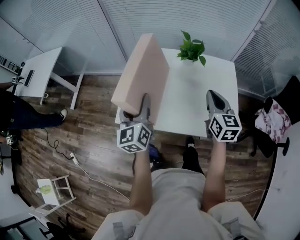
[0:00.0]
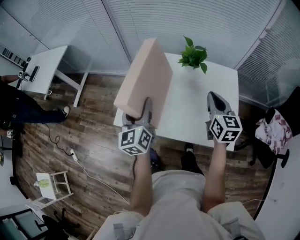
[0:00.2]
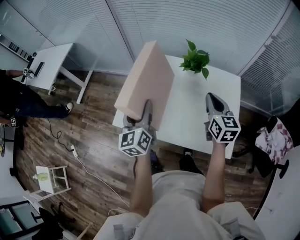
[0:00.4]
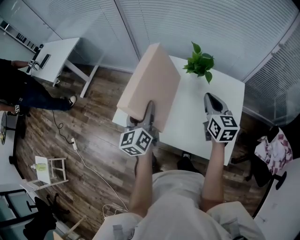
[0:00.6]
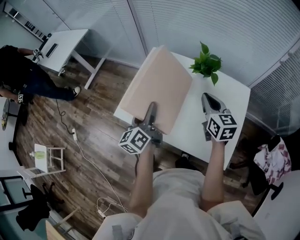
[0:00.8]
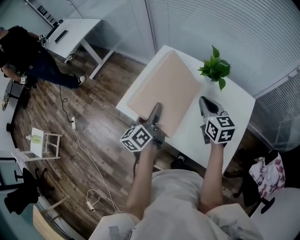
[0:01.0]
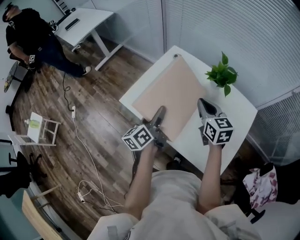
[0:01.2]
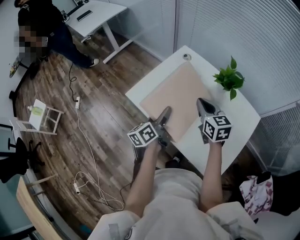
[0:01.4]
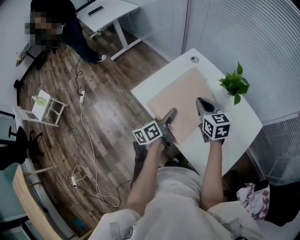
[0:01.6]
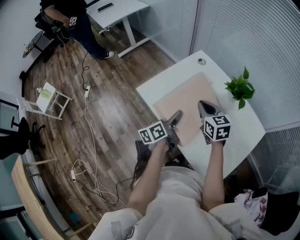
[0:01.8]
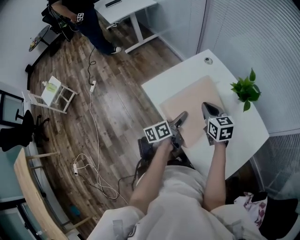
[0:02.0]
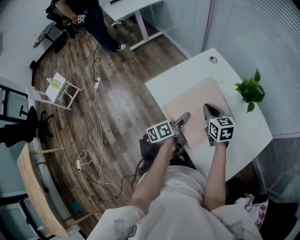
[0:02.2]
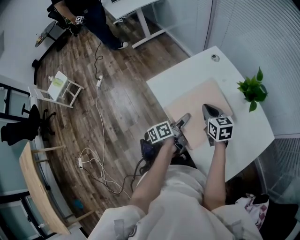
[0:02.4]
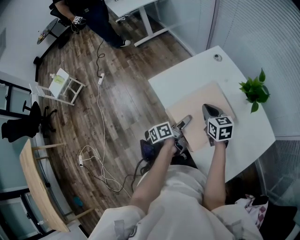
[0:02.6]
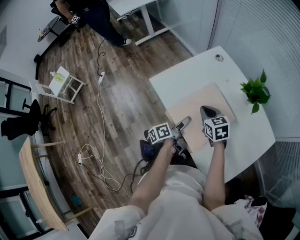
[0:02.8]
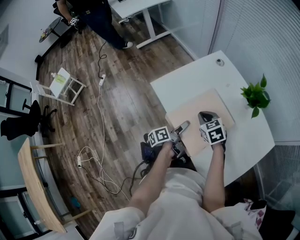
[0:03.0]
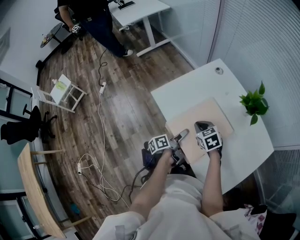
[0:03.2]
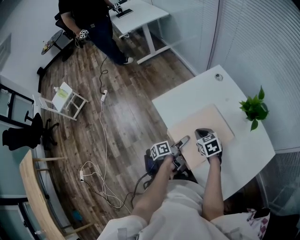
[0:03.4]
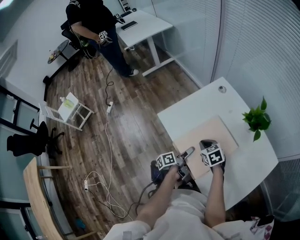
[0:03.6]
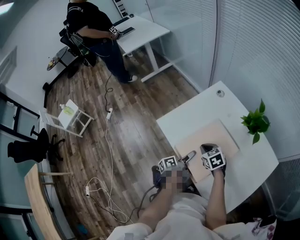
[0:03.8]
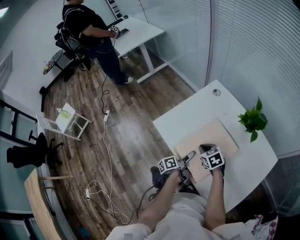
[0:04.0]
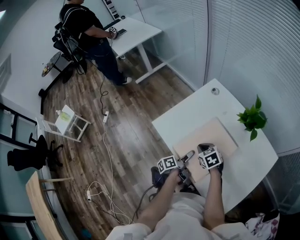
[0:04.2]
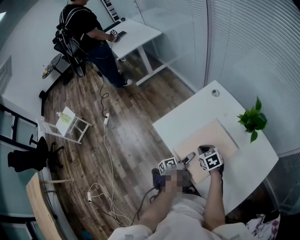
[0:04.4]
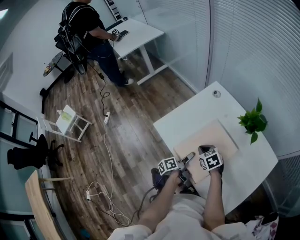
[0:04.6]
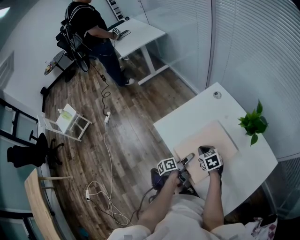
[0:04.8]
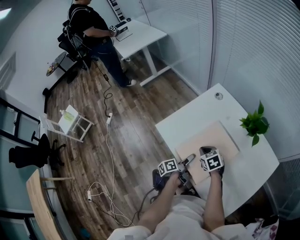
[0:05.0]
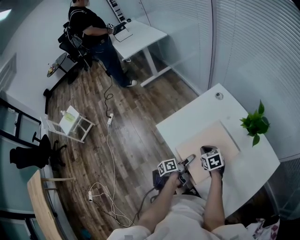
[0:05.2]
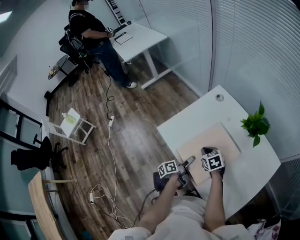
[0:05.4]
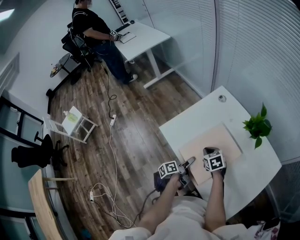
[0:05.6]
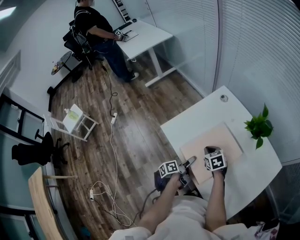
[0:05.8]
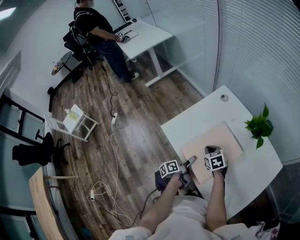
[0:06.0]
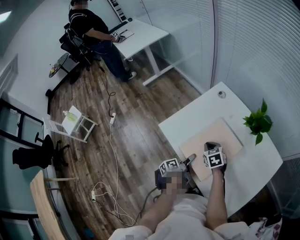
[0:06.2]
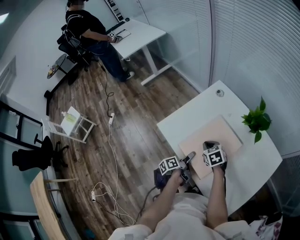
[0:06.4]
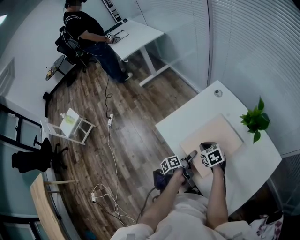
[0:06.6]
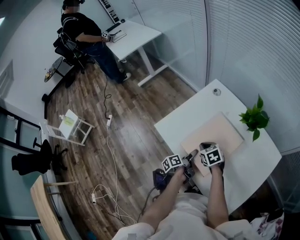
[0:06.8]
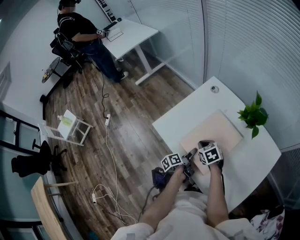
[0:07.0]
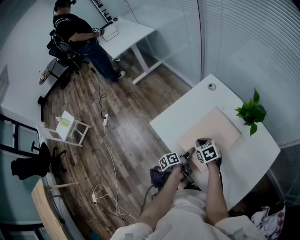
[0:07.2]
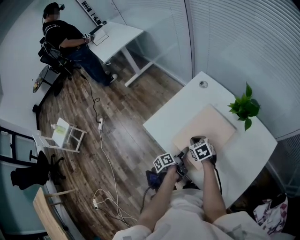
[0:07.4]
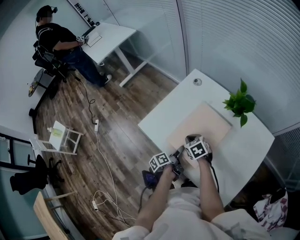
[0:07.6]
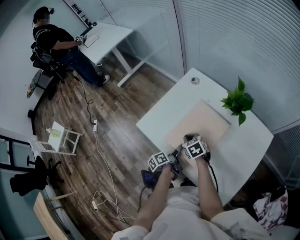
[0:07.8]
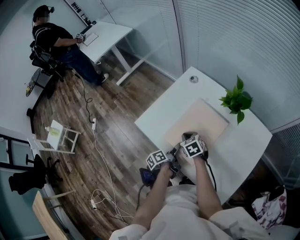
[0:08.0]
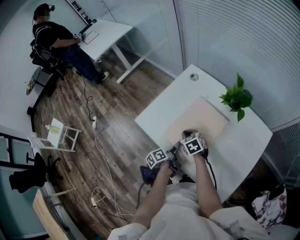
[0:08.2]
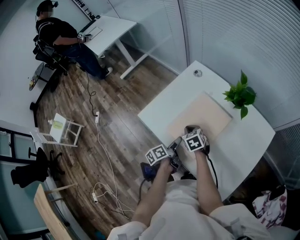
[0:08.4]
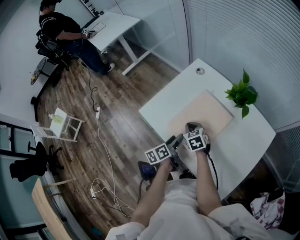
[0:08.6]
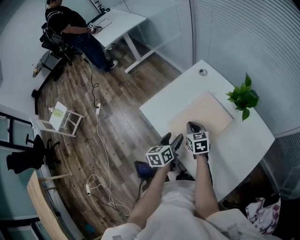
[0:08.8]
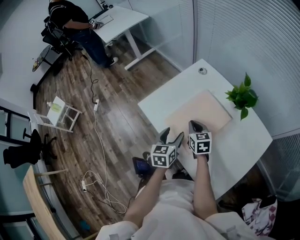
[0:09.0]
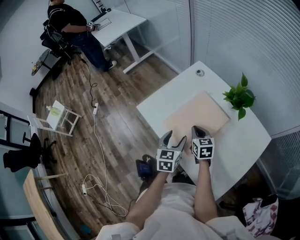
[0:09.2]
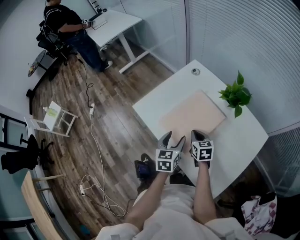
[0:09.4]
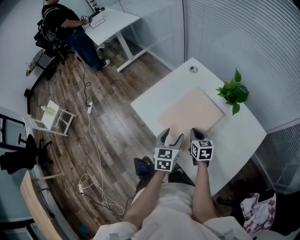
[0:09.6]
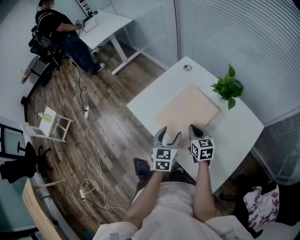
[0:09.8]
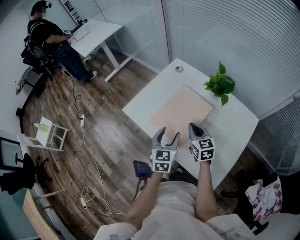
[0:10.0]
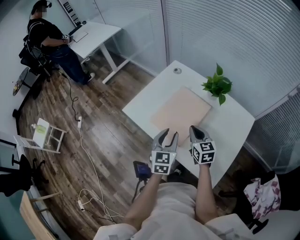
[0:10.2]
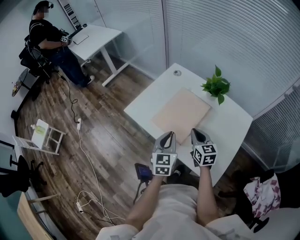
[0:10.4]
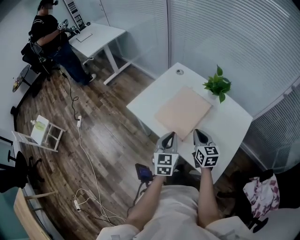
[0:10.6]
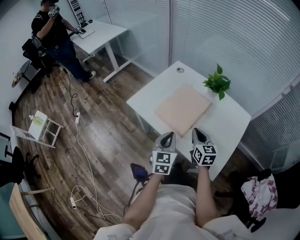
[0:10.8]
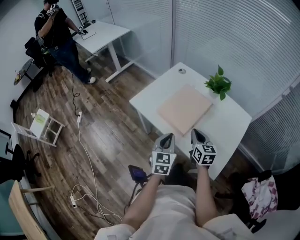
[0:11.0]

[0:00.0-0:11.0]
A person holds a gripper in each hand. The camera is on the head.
0:00.0 to 0:01.6: The right gripper shifts by about 15 cm, and rotates roughly 50 degrees. The left gripper travels downward by about 15 cm, and rotates around the line of its fingers by some 40 degrees, counterclockwise from behind.
0:01.6 to 0:03.2: The left gripper heads downward, covering approximately 10 cm, and rotates some 30 degrees, while the right gripper heads downward and to the left, covering roughly 15 cm, and changes its angle by approximately 30 degrees.
0:03.2 to 0:04.8: The grippers make only small movements.
0:04.8 to 0:07.8: The grippers move only a little.
0:07.8 to 0:09.4: The right gripper is displaced to the right and backward by some 10 cm, and turns by approximately 20 degrees. The left gripper goes some 10 cm upward, and twists about 70 degrees clockwise, seen from behind.
0:09.4 to 0:11.0: Both grippers move backward and upward, about 15 cm. The right gripper turns by roughly 20 degrees; the left gripper closes its fingers.

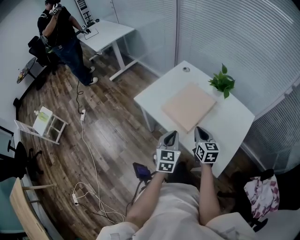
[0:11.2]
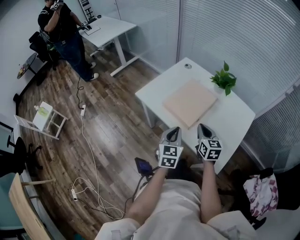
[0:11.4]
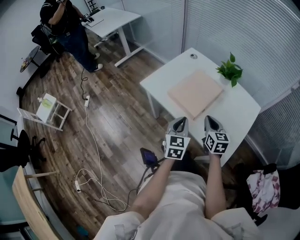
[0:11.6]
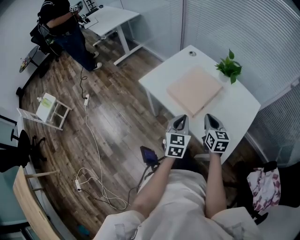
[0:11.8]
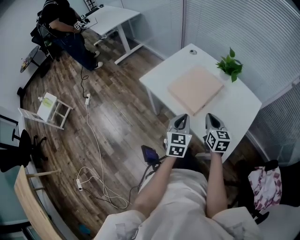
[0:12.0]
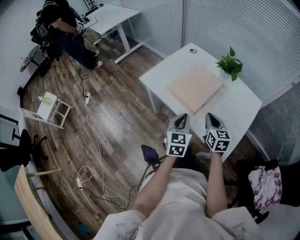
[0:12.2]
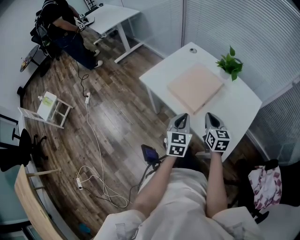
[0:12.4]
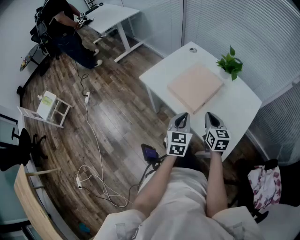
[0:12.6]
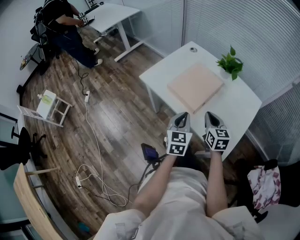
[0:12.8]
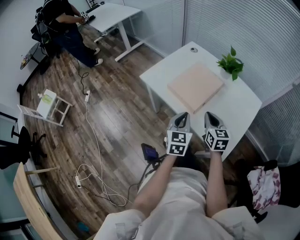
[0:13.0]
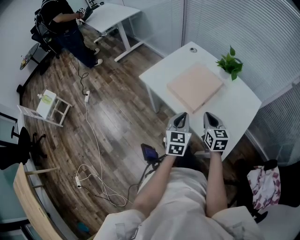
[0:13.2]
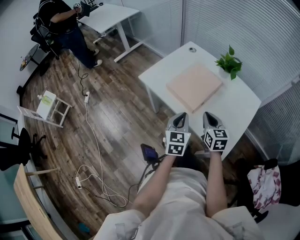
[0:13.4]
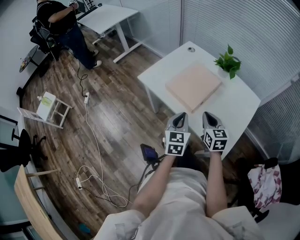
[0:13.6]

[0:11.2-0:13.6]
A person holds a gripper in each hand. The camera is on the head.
0:11.2 to 0:12.4: There are only small adjustments of the grippers.
0:12.4 to 0:13.6: Both grippers stay put.

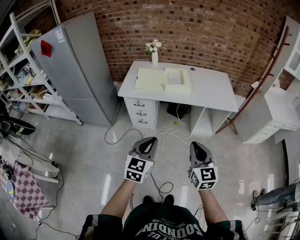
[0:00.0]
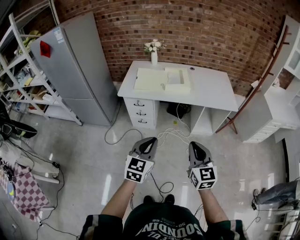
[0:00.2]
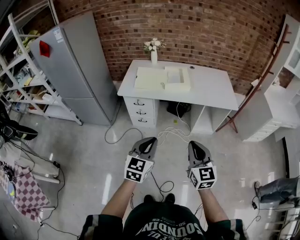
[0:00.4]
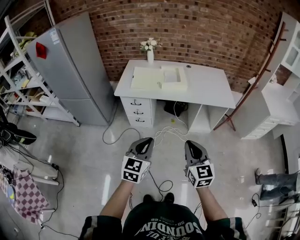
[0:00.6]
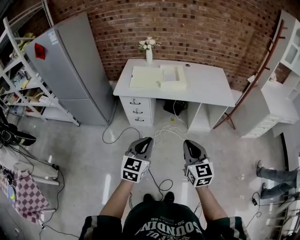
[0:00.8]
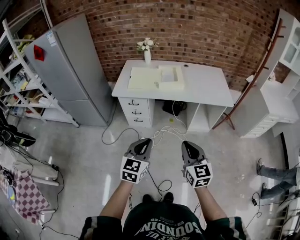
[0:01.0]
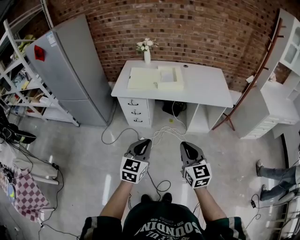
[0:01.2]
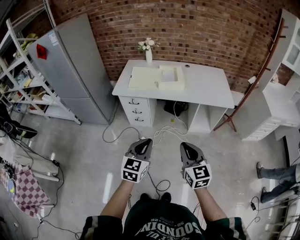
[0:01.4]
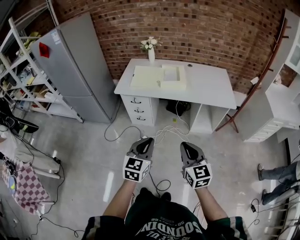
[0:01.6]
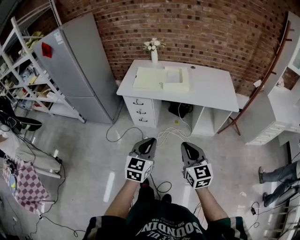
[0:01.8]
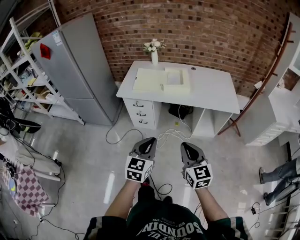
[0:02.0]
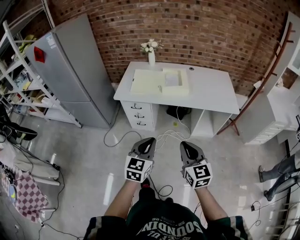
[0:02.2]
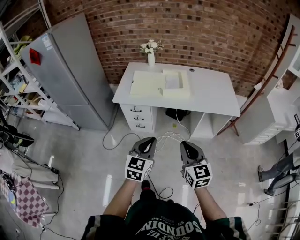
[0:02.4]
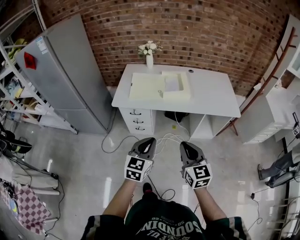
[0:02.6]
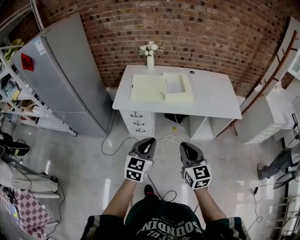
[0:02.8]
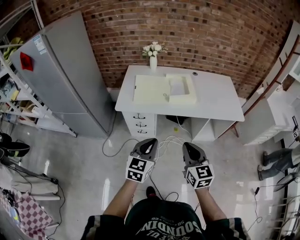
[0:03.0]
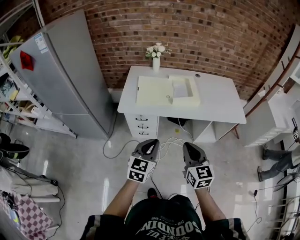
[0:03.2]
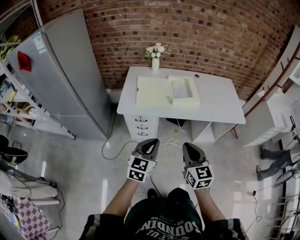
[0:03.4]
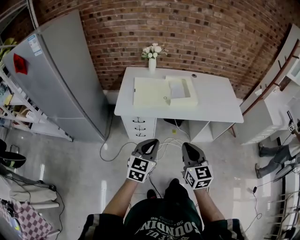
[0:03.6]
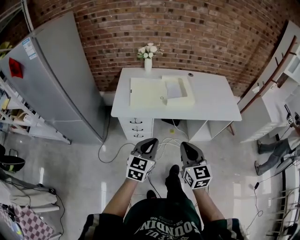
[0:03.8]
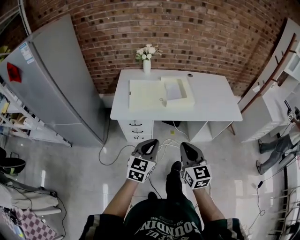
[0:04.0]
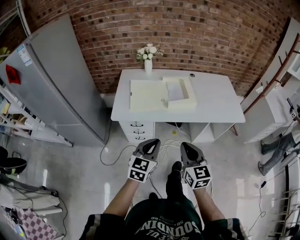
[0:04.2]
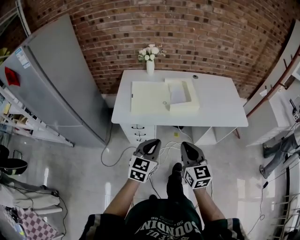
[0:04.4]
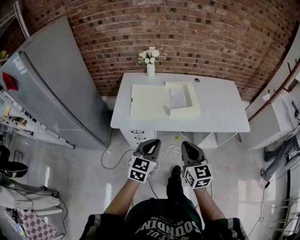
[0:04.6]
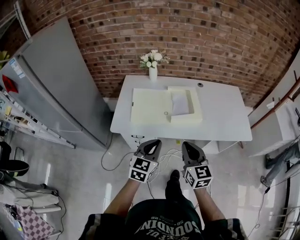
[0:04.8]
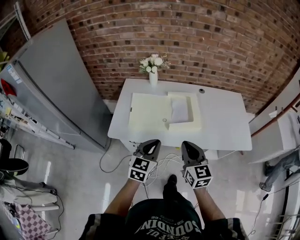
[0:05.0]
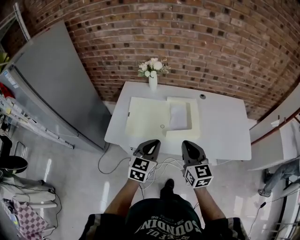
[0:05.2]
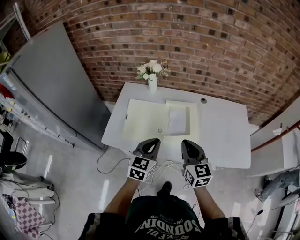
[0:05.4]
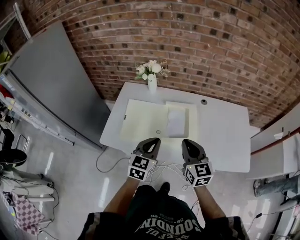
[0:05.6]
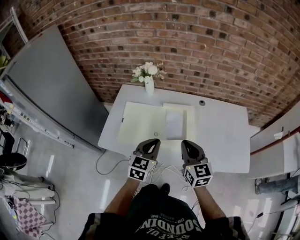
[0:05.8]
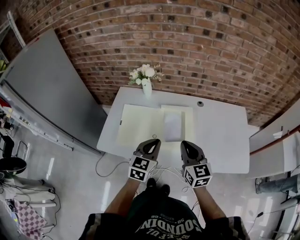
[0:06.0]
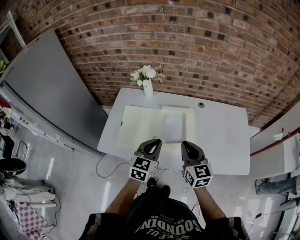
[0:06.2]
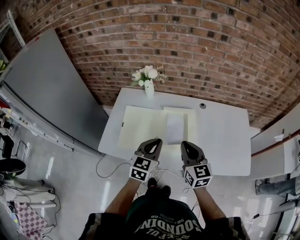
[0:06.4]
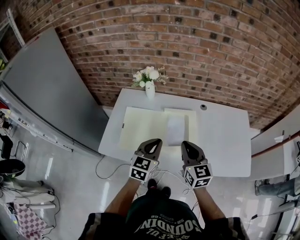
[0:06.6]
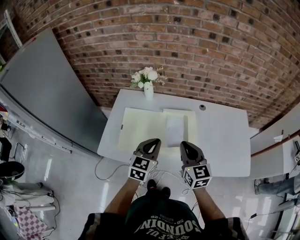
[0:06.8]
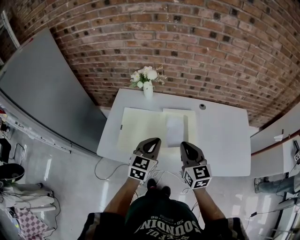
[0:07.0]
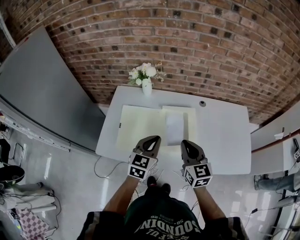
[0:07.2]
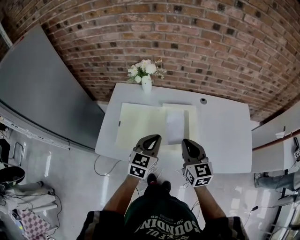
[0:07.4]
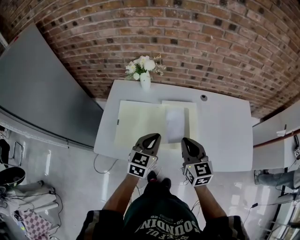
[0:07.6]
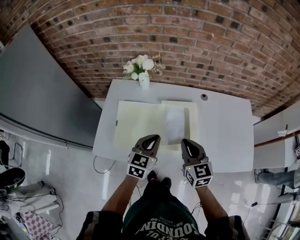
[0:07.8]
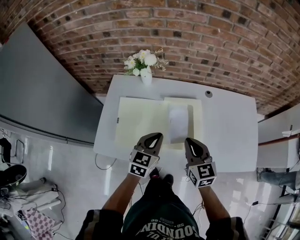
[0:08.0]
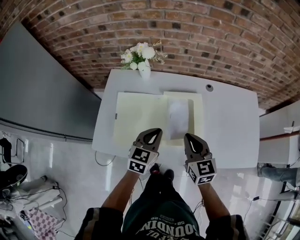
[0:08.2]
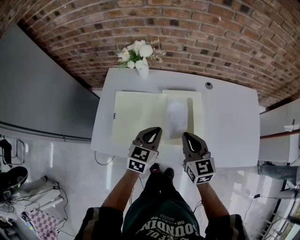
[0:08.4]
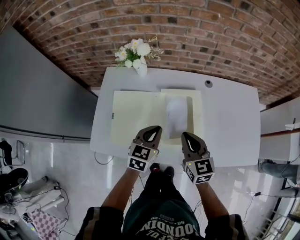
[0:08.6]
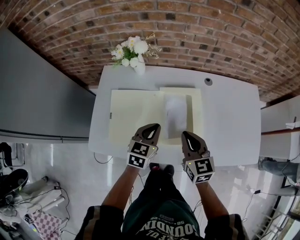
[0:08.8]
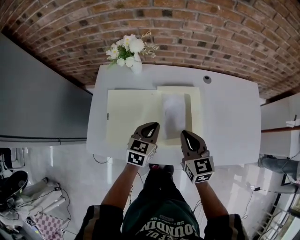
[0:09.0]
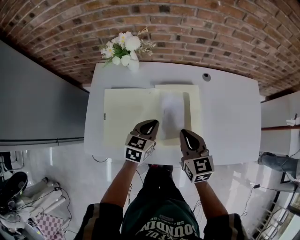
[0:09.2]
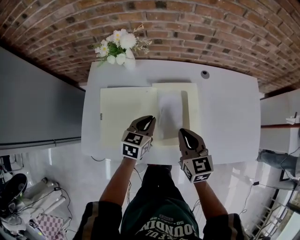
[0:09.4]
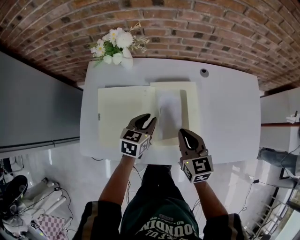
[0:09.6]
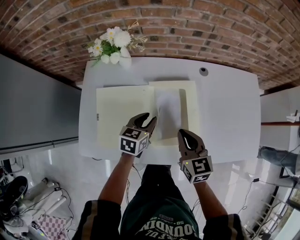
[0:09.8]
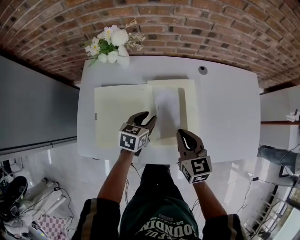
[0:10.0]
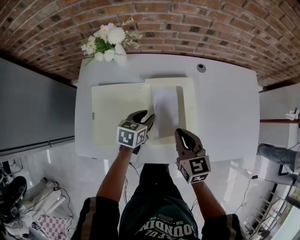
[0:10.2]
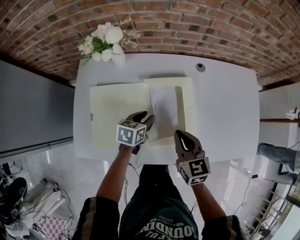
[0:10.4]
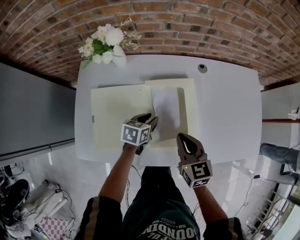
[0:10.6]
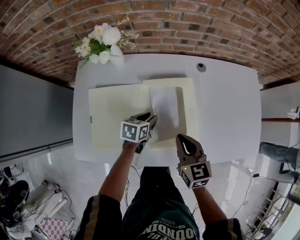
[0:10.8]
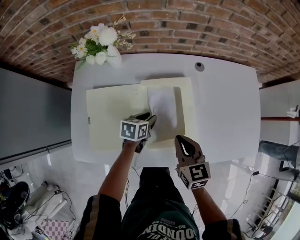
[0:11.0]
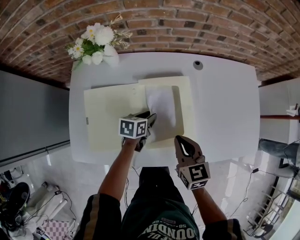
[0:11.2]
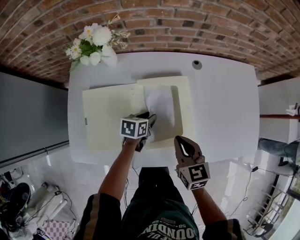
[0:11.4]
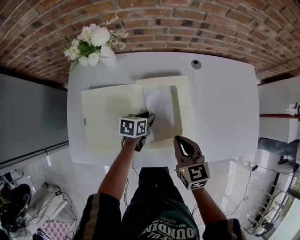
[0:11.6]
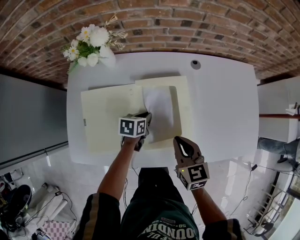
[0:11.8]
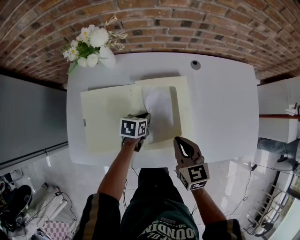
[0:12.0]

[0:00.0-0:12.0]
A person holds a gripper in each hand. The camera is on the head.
0:00.0 to 0:01.6: The left gripper heads to the right, covering approximately 5 cm.
0:01.6 to 0:03.0: The two grippers go roughly 25 cm forward and to the left.
0:03.0 to 0:04.4: Both grippers move forward, roughly 10 cm.
0:04.4 to 0:06.0: Both grippers move forward, about 30 cm.
0:06.0 to 0:07.6: Both grippers travel together forward, some 5 cm.
0:07.6 to 0:09.0: Both grippers travel together downward and forward, approximately 10 cm.
0:09.0 to 0:10.4: The left gripper heads downward, covering roughly 10 cm, changes its angle by about 20 degrees, and opens; the right gripper ends up some 5 cm from where it was.
0:10.4 to 0:12.0: The left gripper goes approximately 5 cm downward, and closes its fingers.
